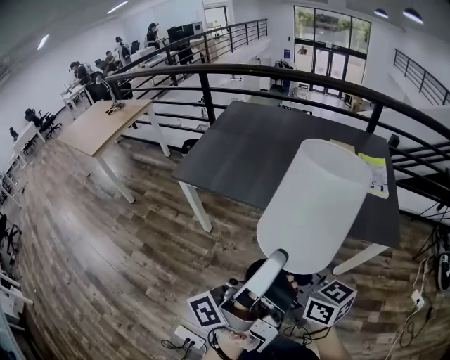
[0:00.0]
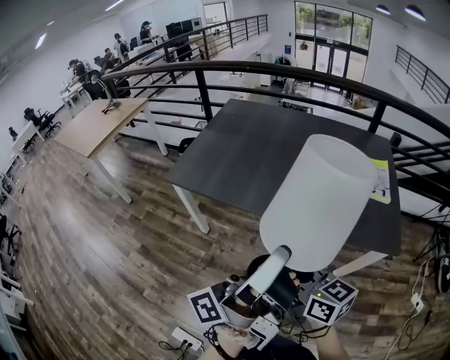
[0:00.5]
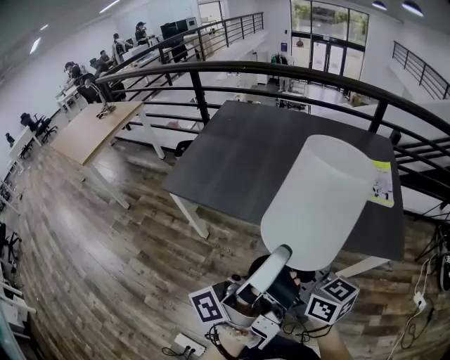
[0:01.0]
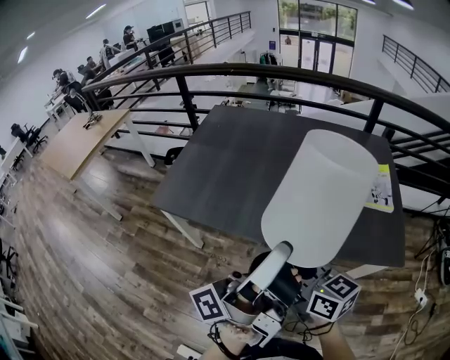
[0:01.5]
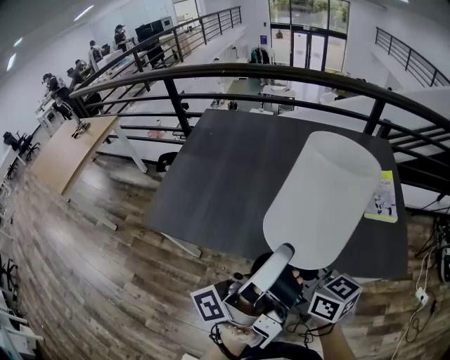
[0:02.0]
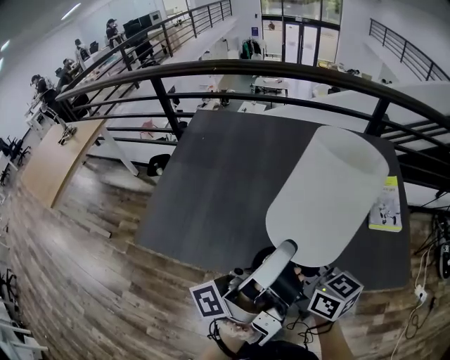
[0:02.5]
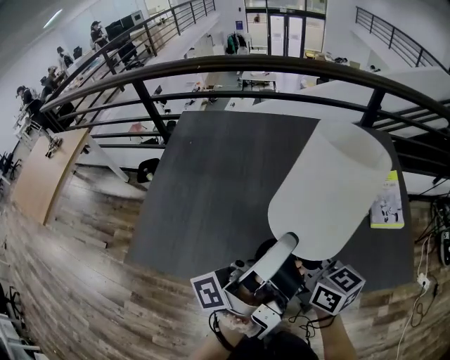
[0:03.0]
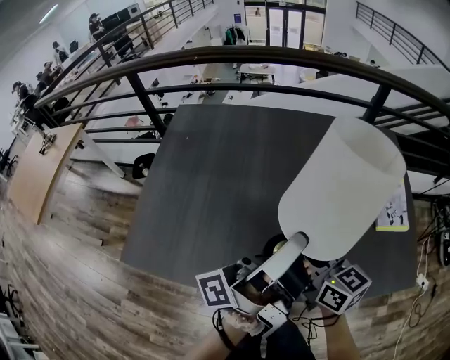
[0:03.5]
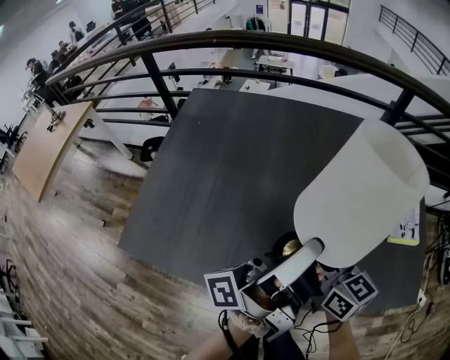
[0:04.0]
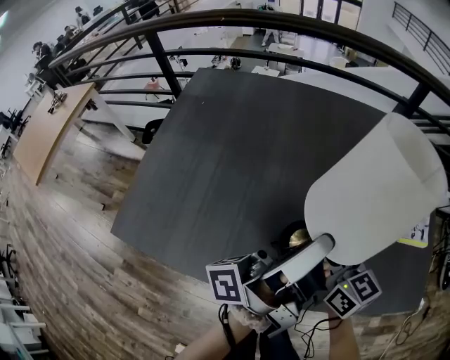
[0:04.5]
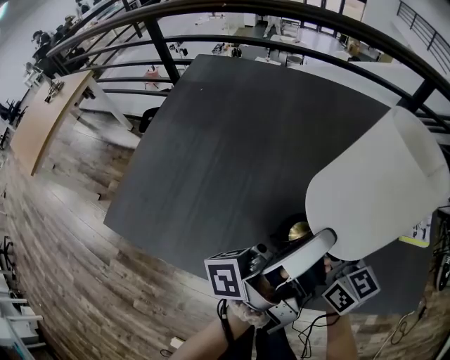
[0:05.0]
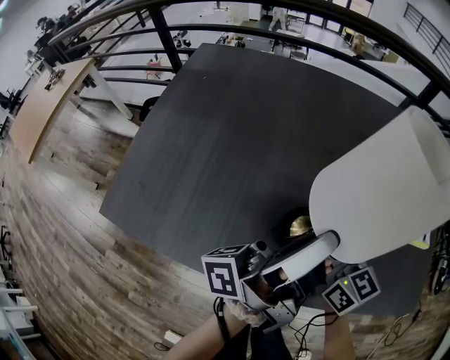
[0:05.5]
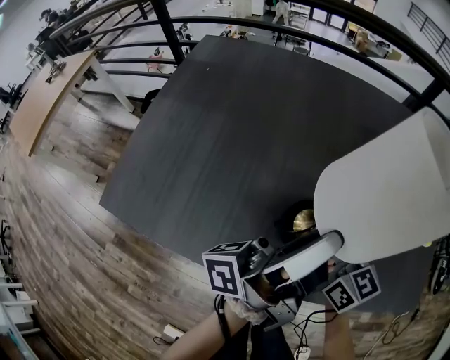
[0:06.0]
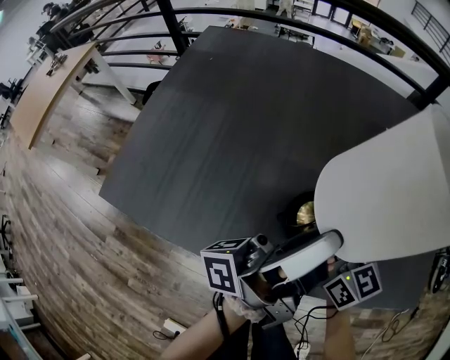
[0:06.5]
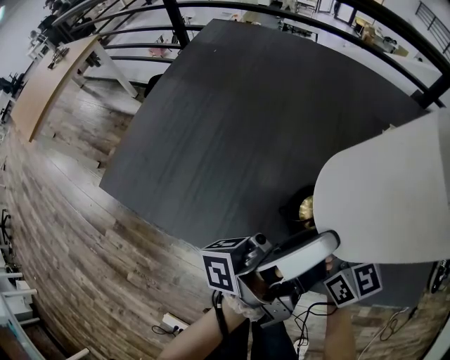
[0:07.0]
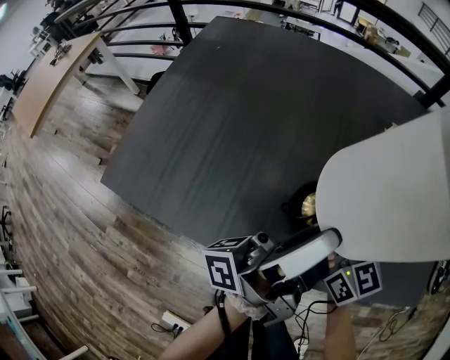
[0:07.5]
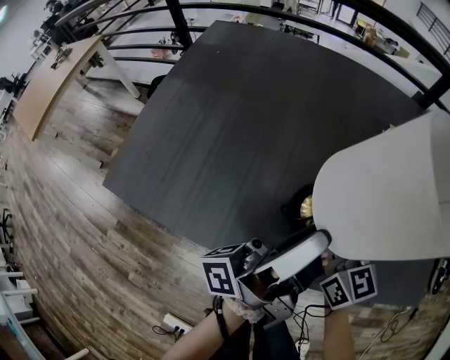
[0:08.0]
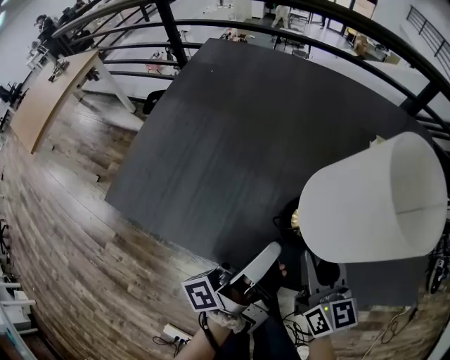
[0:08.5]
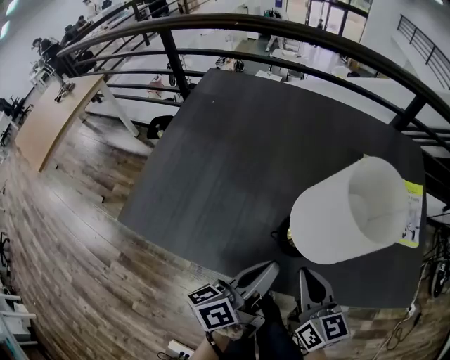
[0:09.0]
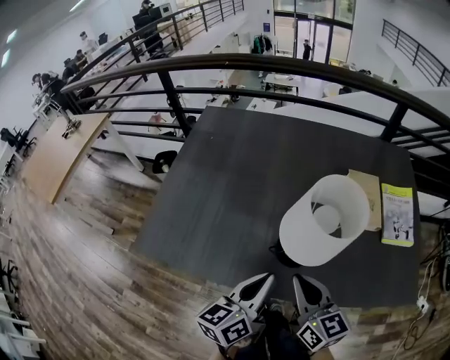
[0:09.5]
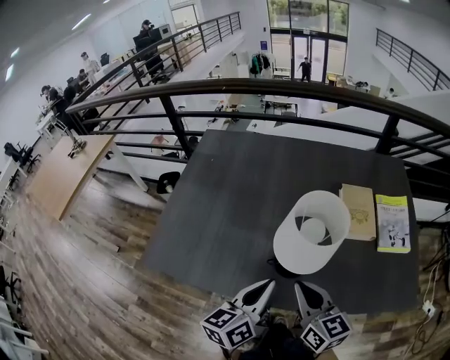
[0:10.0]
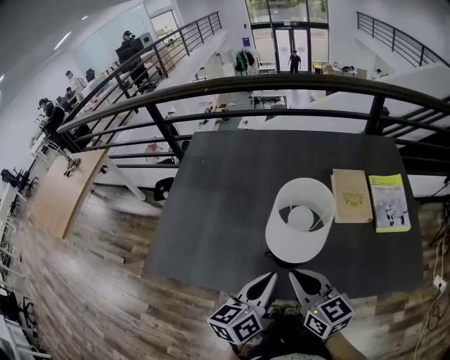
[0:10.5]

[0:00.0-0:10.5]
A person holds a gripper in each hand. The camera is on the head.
0:00.0 to 0:02.0: The right gripper moves roughly 25 cm.
0:02.0 to 0:04.0: The right gripper ends up approximately 25 cm from where it was.
0:04.0 to 0:06.5: The right gripper shifts approximately 5 cm downward.
0:06.5 to 0:08.5: The right gripper moves about 5 cm.
0:08.5 to 0:10.5: The right gripper shifts about 10 cm upward, and closes up.

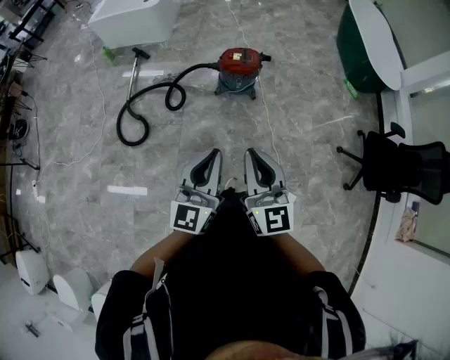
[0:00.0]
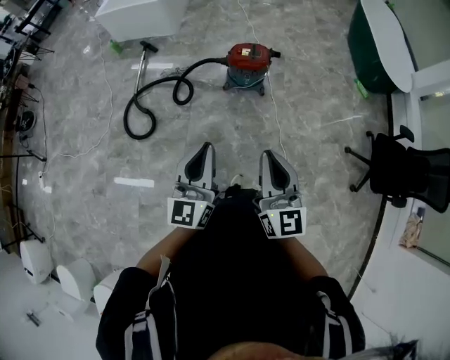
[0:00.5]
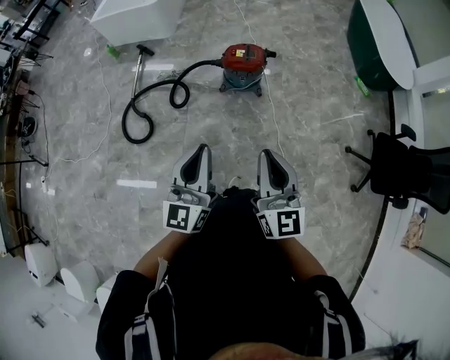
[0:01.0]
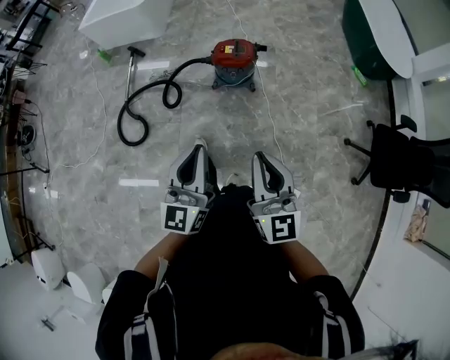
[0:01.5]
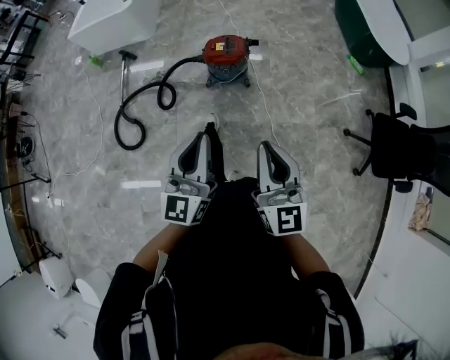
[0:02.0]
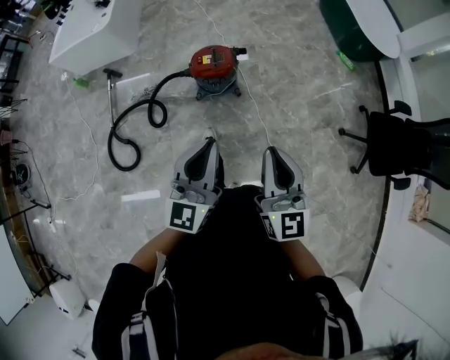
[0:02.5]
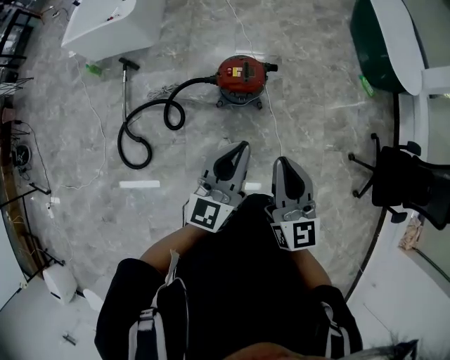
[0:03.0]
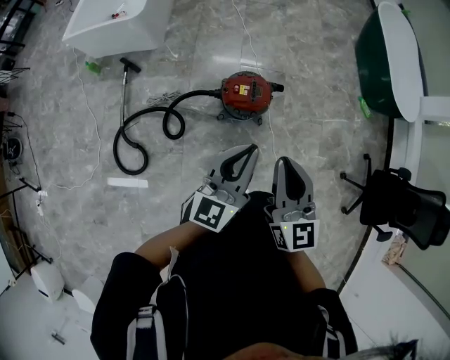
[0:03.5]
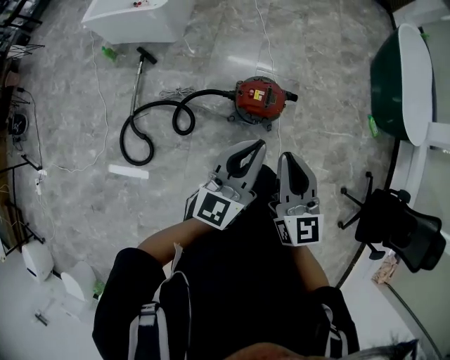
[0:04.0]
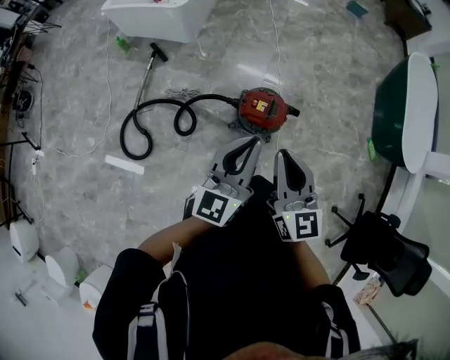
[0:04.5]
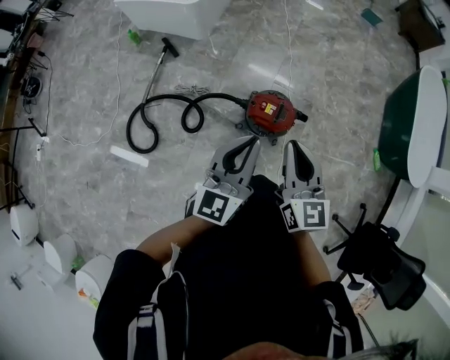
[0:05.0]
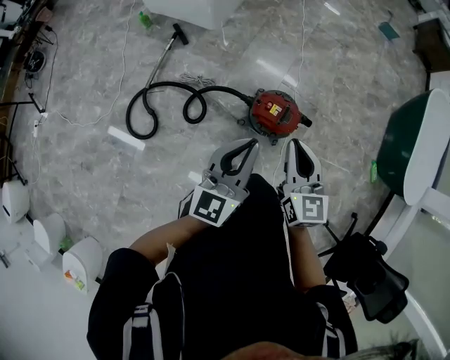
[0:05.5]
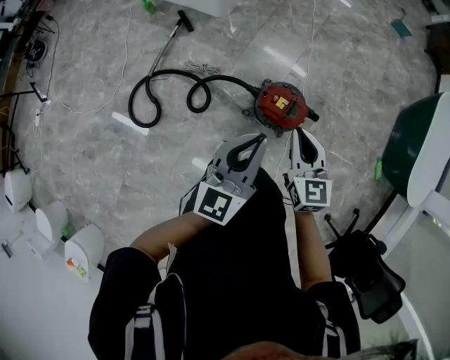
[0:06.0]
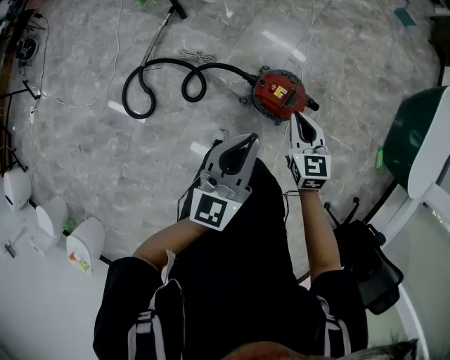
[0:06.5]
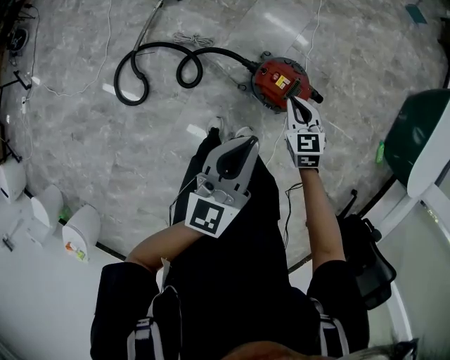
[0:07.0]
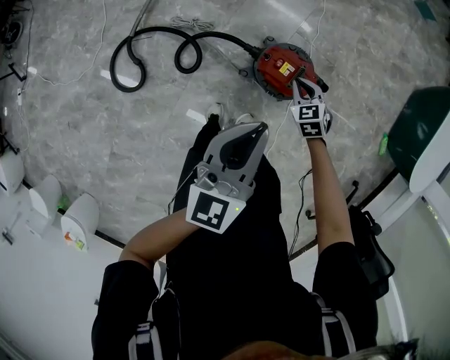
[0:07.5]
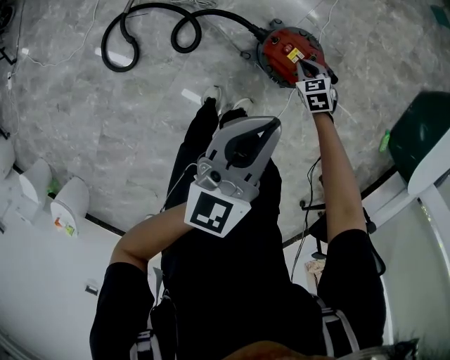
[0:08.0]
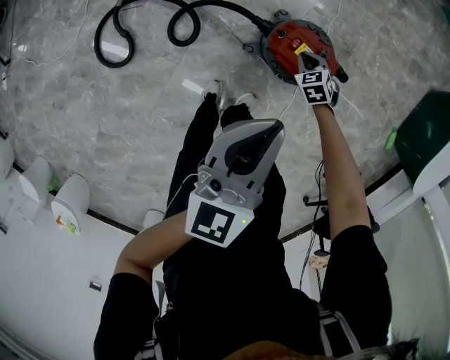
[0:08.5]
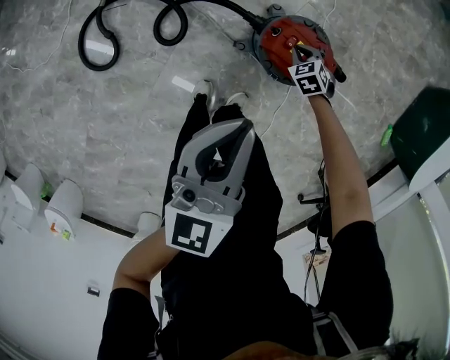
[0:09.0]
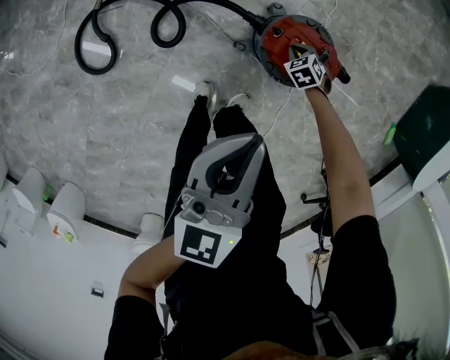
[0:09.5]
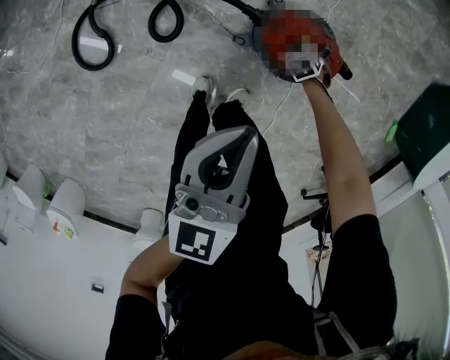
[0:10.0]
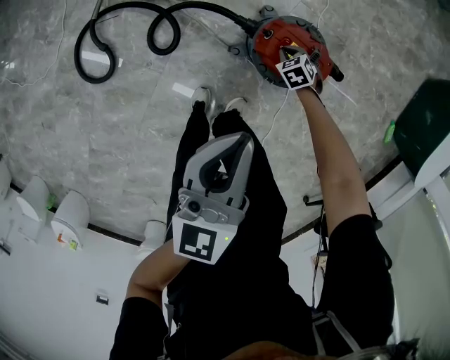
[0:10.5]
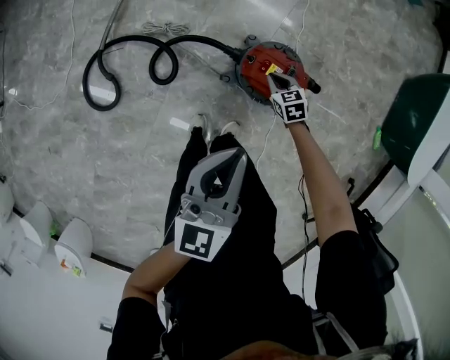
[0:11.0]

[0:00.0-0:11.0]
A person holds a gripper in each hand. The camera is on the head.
0:00.0 to 0:02.0: The right gripper shifts approximately 15 cm to the right and forward. The left gripper is displaced forward and to the right by about 15 cm.
0:02.0 to 0:03.5: The left gripper heads forward, covering about 30 cm, while the right gripper travels forward and to the left by roughly 35 cm.
0:03.5 to 0:05.5: The left gripper moves forward and to the left, about 10 cm, and turns by about 20 degrees. Meanwhile the right gripper travels forward and downward by roughly 15 cm, and changes its angle by some 20 degrees.
0:05.5 to 0:07.5: The left gripper is displaced downward and forward by some 10 cm. The right gripper moves downward, approximately 35 cm, and tilts its fingers about 40 degrees downward.
0:07.5 to 0:09.0: The right gripper heads downward, covering approximately 25 cm; the left gripper shifts approximately 15 cm downward.
0:09.0 to 0:11.0: The right gripper travels upward by roughly 10 cm, and swivels some 30 degrees. Meanwhile the left gripper changes place by about 5 cm.

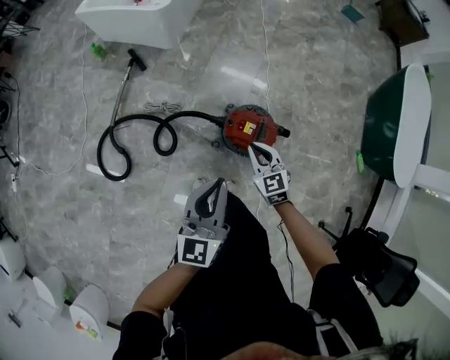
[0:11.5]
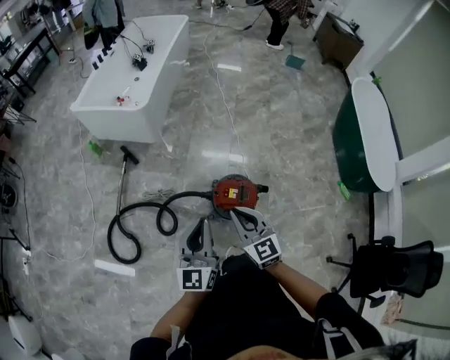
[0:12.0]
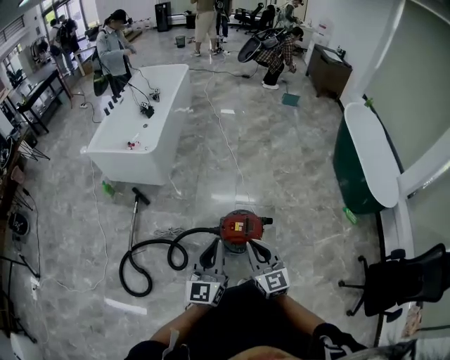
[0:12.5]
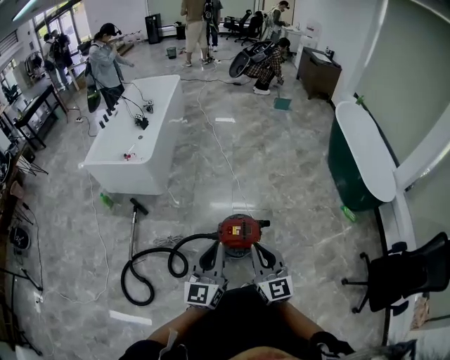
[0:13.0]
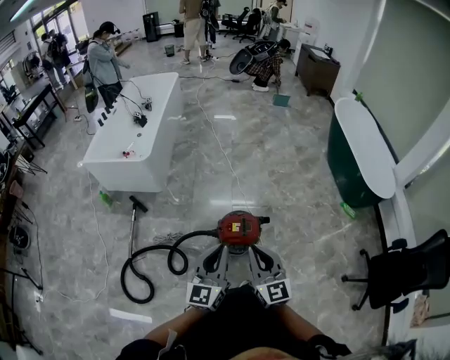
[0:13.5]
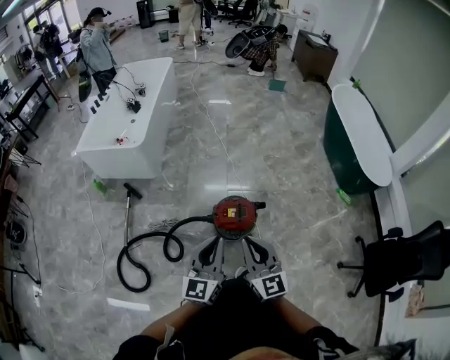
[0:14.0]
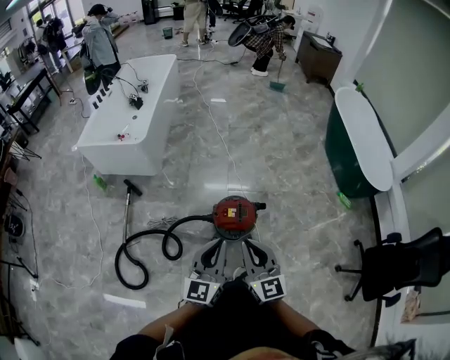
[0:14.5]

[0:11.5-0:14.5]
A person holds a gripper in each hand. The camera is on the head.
0:11.5 to 0:13.0: The left gripper travels upward by about 15 cm. The right gripper is displaced upward and backward by about 30 cm, and tips its fingers upward by roughly 30 degrees.
0:13.0 to 0:14.5: The left gripper shifts by roughly 5 cm.

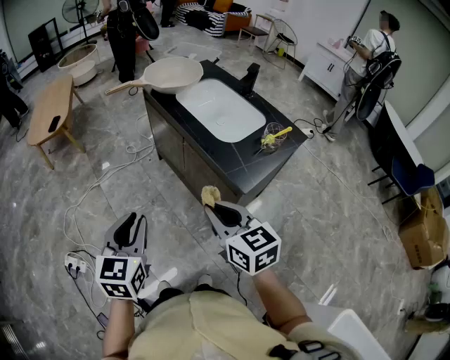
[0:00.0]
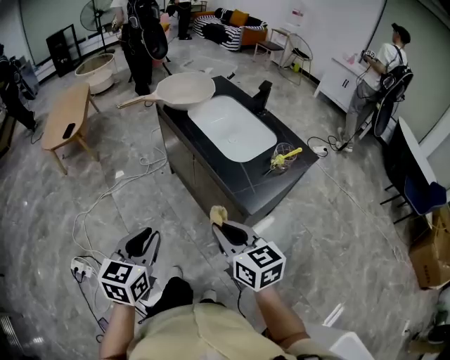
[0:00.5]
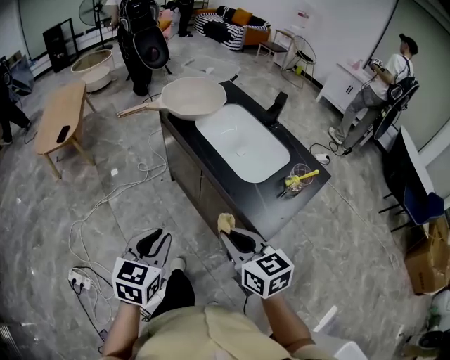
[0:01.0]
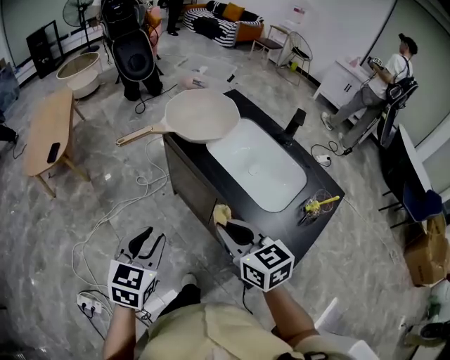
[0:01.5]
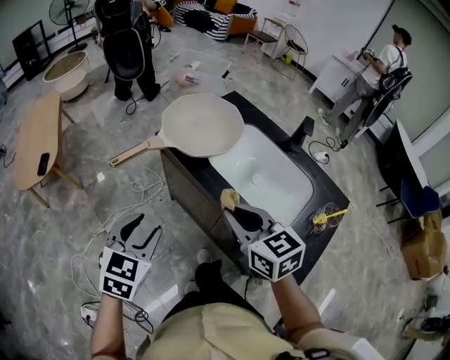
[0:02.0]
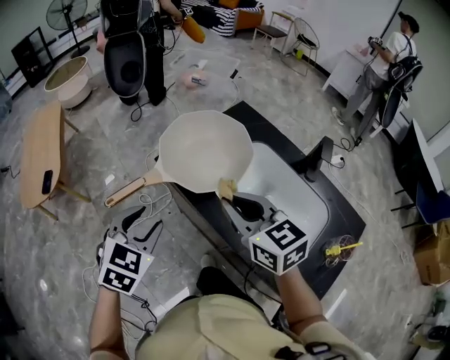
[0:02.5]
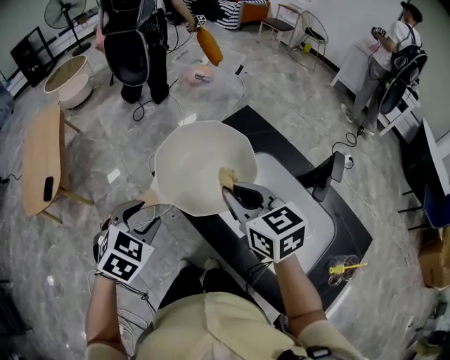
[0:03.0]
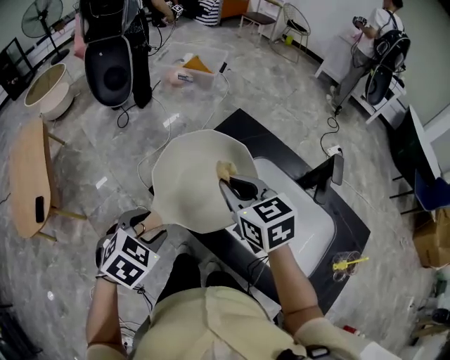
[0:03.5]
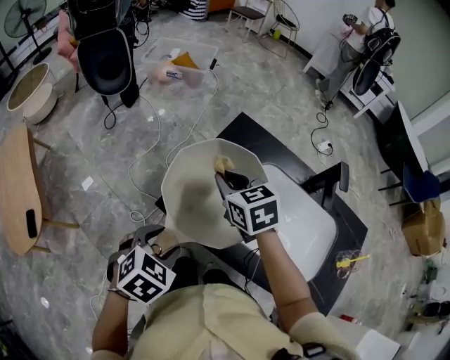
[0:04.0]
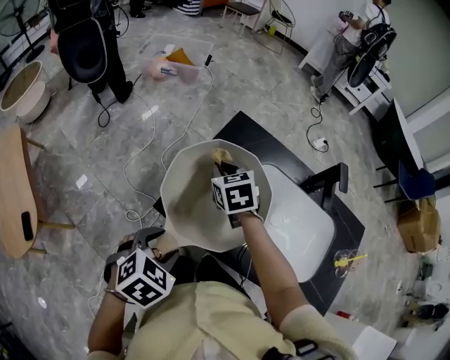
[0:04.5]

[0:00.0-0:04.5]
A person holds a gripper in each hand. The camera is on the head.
0:00.0 to 0:02.0: The two grippers travel together, forward, approximately 40 cm. The left gripper changes its angle by roughly 30 degrees.
0:02.0 to 0:04.5: The right gripper moves roughly 50 cm, and swivels approximately 30 degrees. Meanwhile the left gripper ends up approximately 30 cm from where it was, and swivels some 40 degrees.
